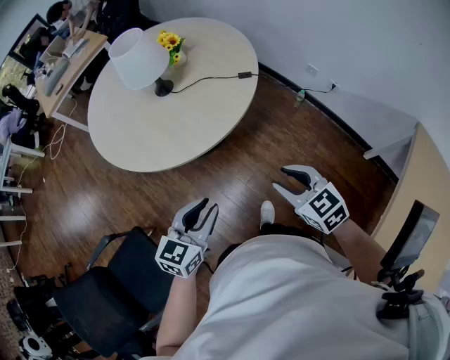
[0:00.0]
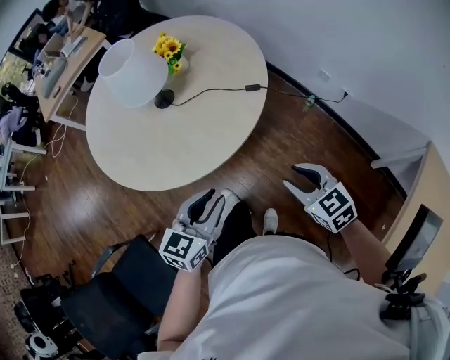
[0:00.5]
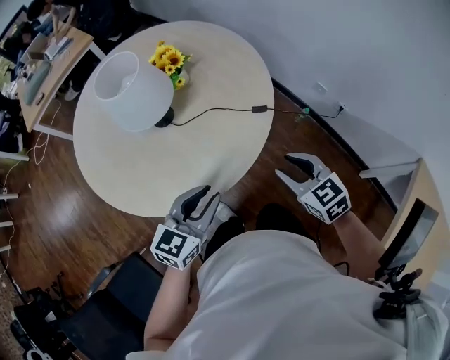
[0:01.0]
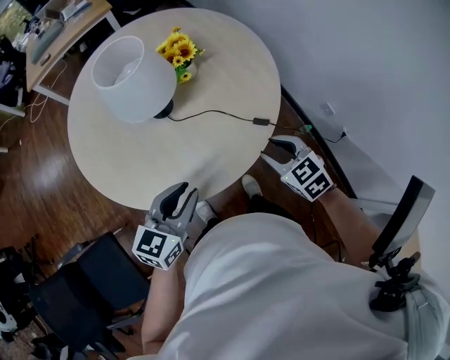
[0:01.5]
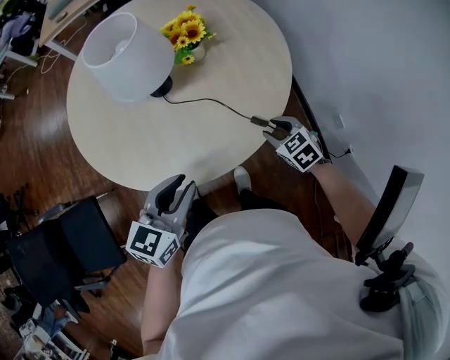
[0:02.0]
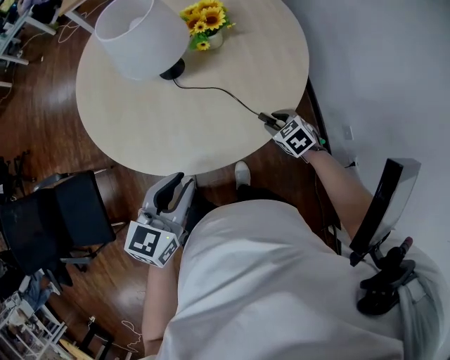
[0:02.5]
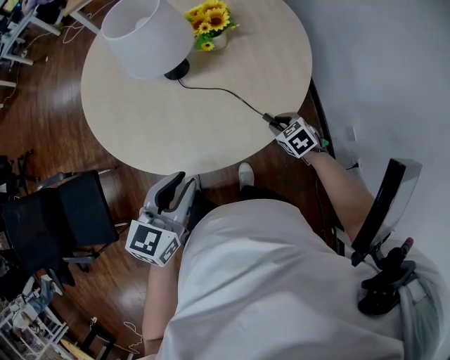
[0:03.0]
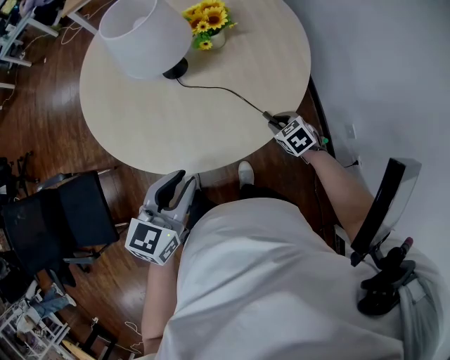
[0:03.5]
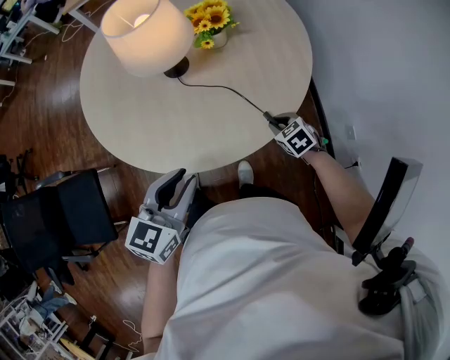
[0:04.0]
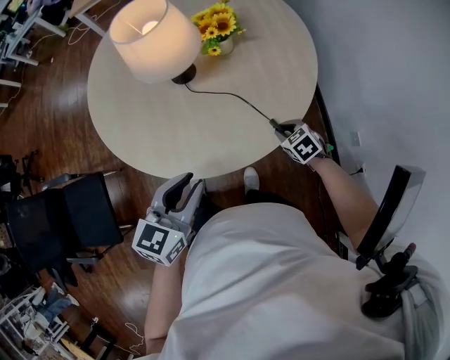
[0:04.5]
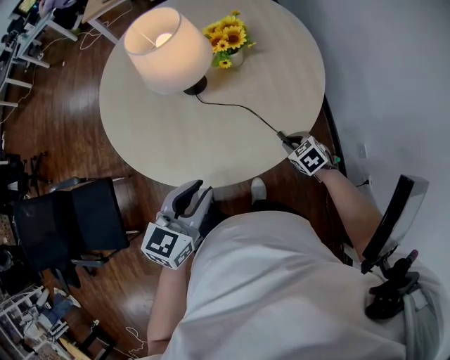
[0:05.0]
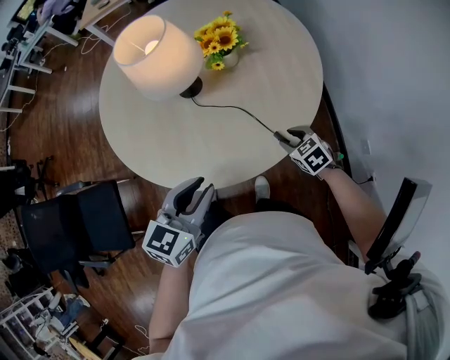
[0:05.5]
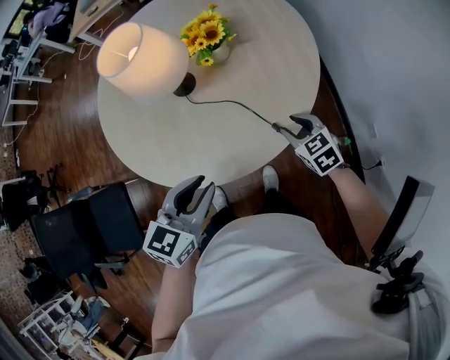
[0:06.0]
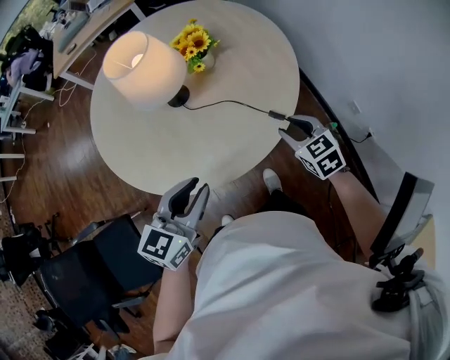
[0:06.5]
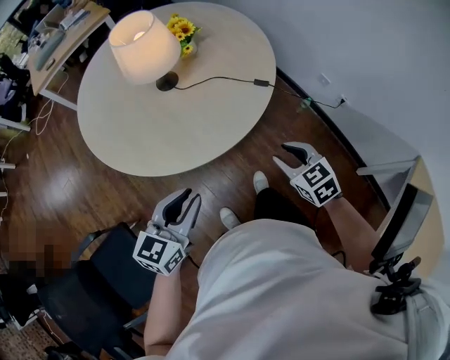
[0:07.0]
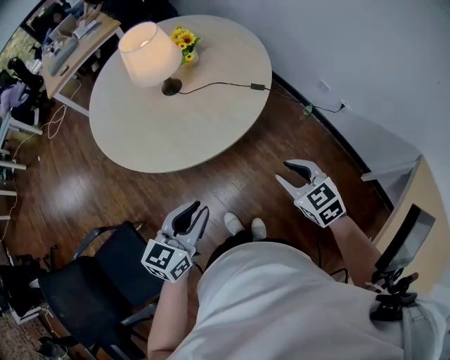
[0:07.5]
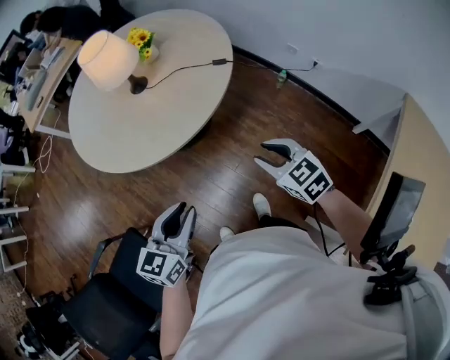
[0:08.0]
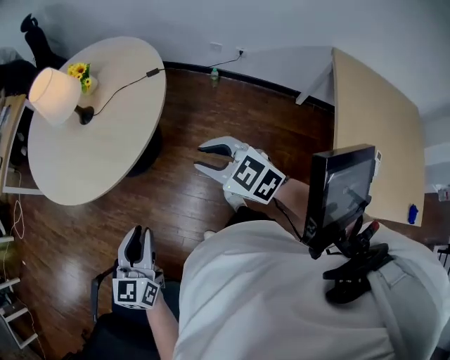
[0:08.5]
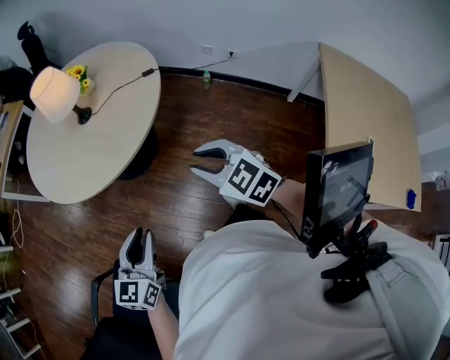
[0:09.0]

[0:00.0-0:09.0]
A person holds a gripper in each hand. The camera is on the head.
0:00.0 to 0:02.0: The left gripper shifts by about 30 cm, and swivels about 30 degrees. Meanwhile the right gripper changes place by roughly 50 cm, and swivels approximately 30 degrees.
0:02.0 to 0:04.5: The right gripper moves downward, some 10 cm, and closes its fingers.
0:04.5 to 0:07.0: The left gripper is displaced forward by roughly 20 cm, while the right gripper is displaced upward, forward and to the right by about 20 cm, and rotates roughly 30 degrees.
0:07.0 to 0:09.0: The left gripper shifts approximately 15 cm backward, while the right gripper is displaced backward, upward and to the left by some 25 cm.

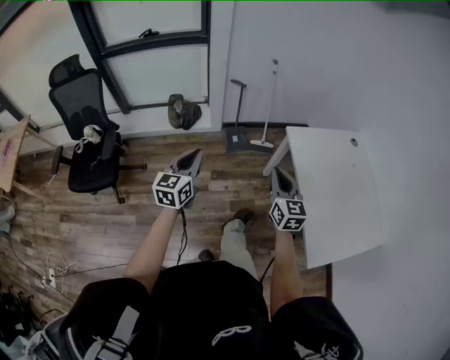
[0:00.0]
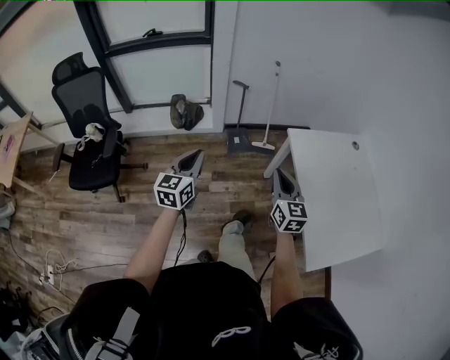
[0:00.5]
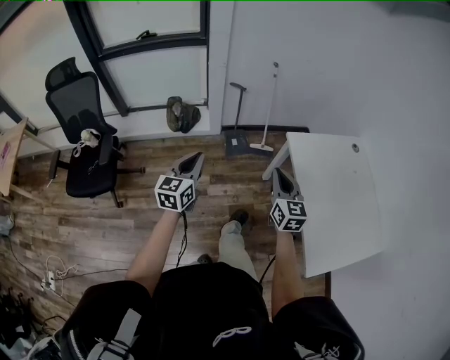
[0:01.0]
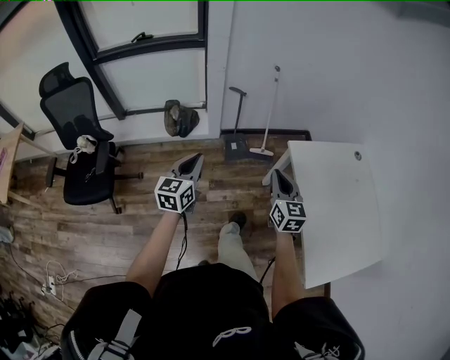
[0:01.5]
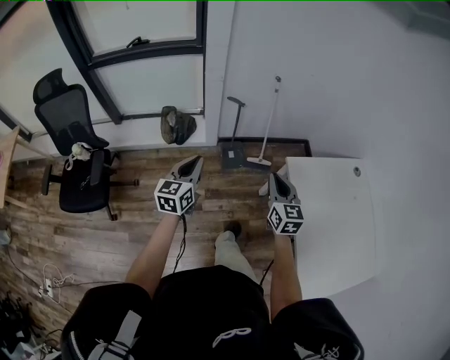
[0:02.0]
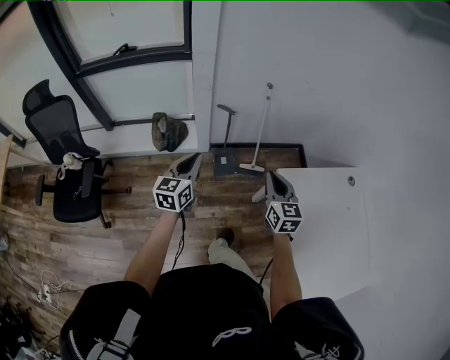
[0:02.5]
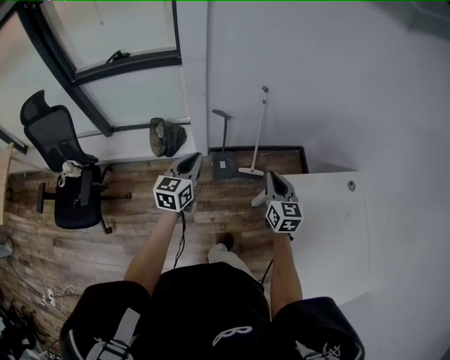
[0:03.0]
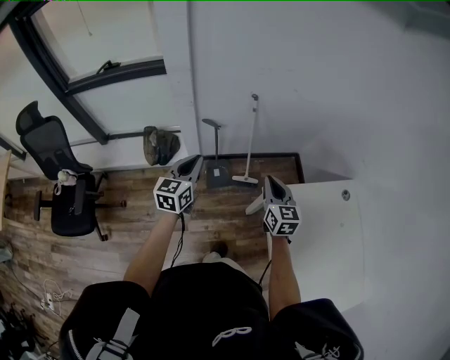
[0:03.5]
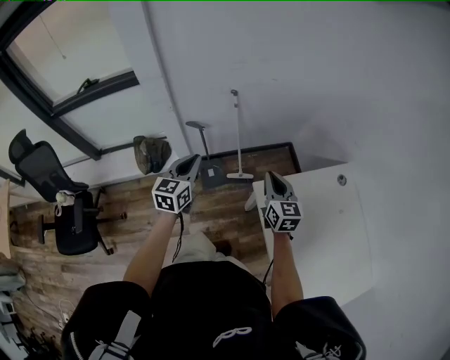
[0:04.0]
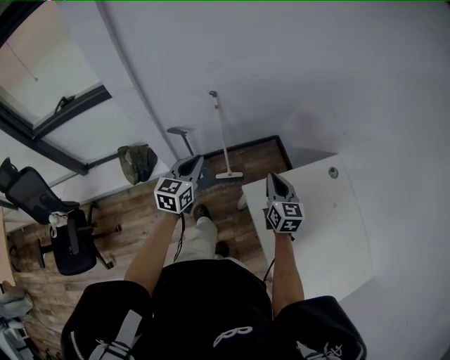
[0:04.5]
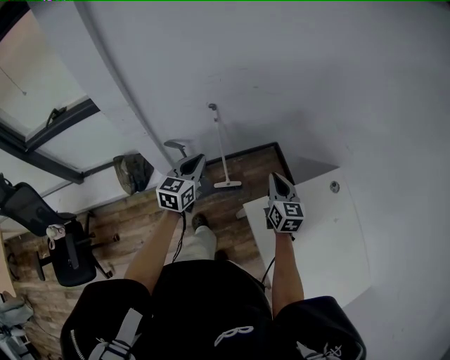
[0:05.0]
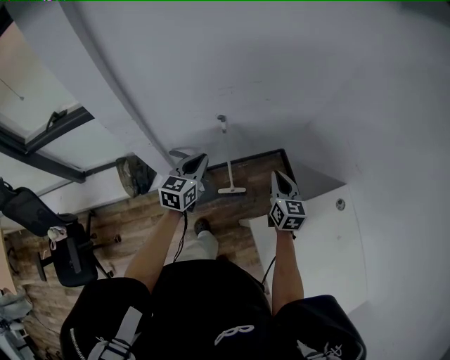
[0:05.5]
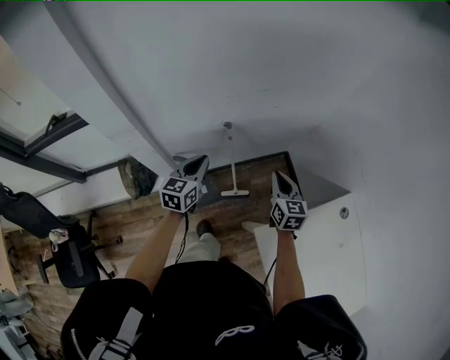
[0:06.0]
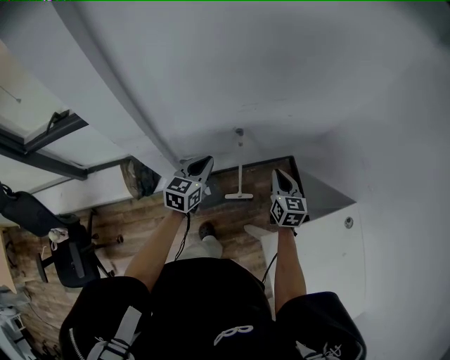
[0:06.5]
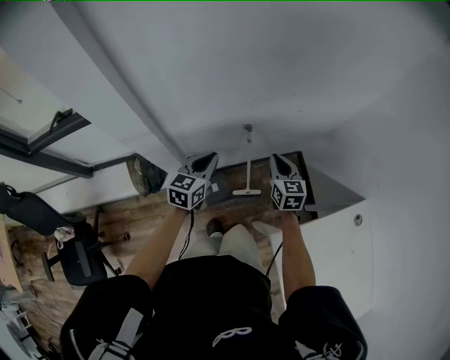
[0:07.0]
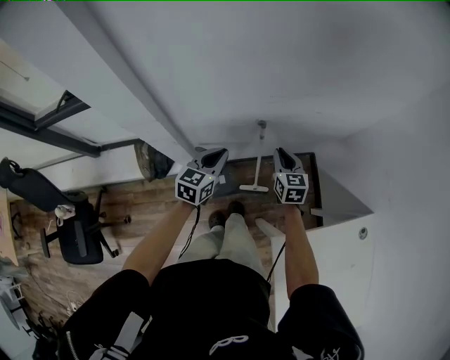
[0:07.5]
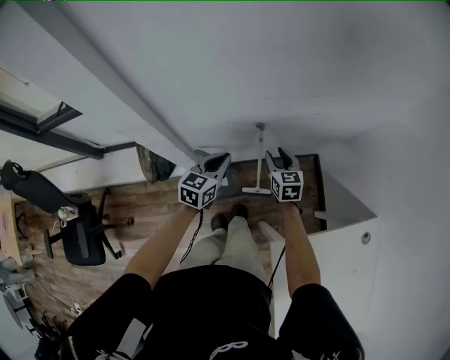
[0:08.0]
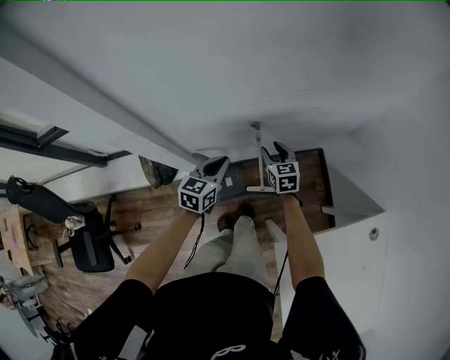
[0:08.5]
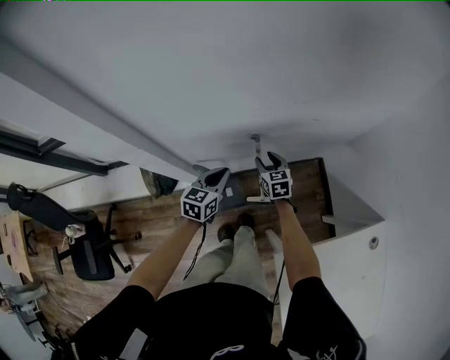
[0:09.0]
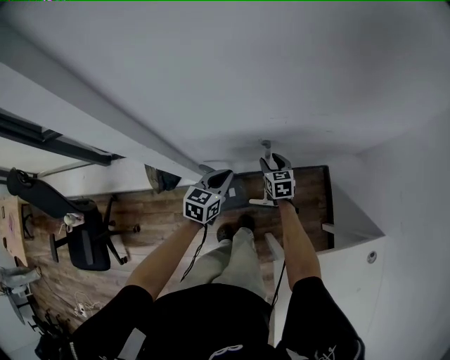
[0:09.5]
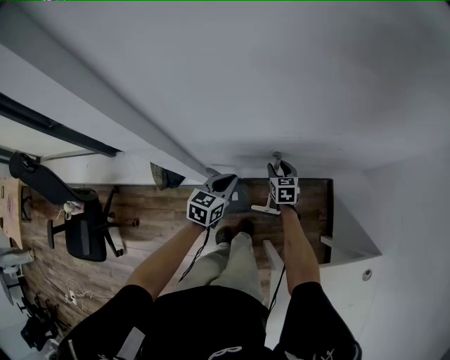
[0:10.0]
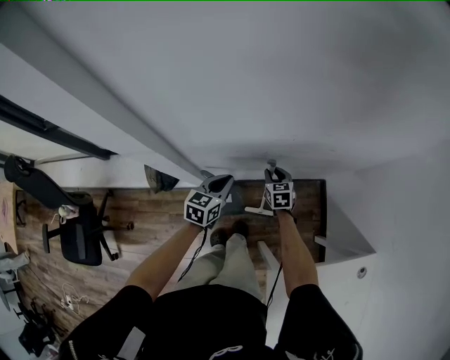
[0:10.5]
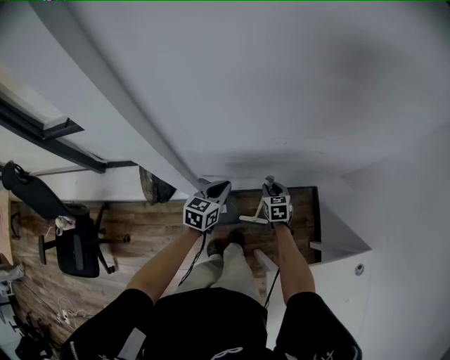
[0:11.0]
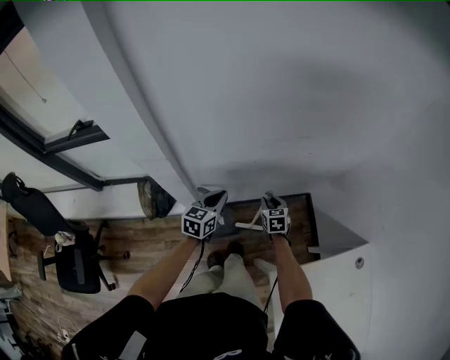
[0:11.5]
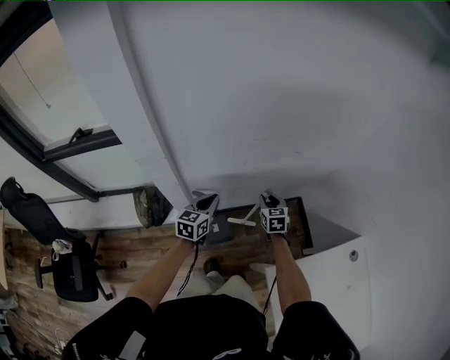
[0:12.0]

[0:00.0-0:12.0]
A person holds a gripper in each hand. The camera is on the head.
0:00.0 to 0:02.0: The two grippers go some 20 cm forward.
0:02.0 to 0:04.0: Both grippers travel together forward and to the right, some 25 cm.
0:04.0 to 0:06.0: The grippers both shift forward by some 25 cm.
0:06.0 to 0:08.0: The left gripper heads downward and forward, covering about 10 cm. The right gripper is displaced forward, downward and to the left by some 20 cm, and opens up.
0:08.0 to 0:10.0: The left gripper moves downward, about 5 cm. The right gripper heads downward and forward, covering roughly 15 cm.
0:10.0 to 0:12.0: The left gripper heads upward and backward, covering approximately 10 cm; the right gripper is displaced backward, upward and to the right by some 20 cm.

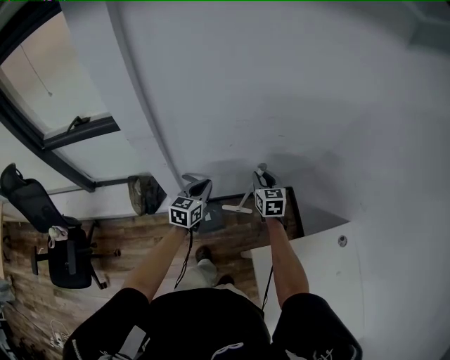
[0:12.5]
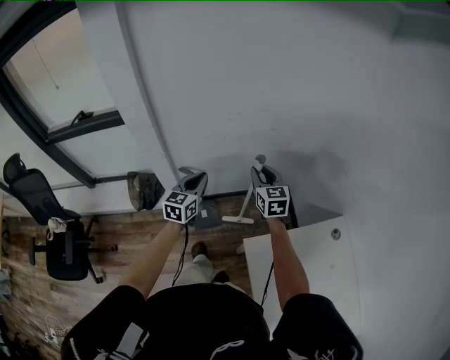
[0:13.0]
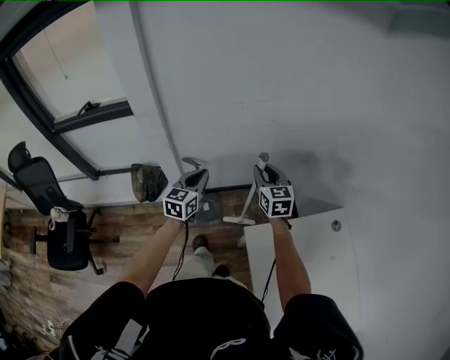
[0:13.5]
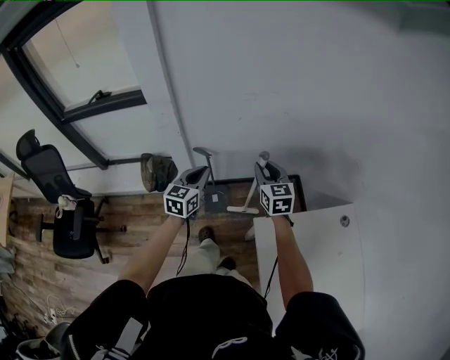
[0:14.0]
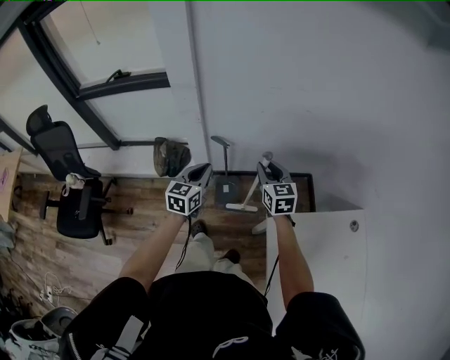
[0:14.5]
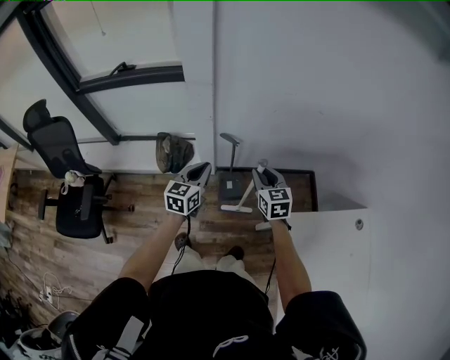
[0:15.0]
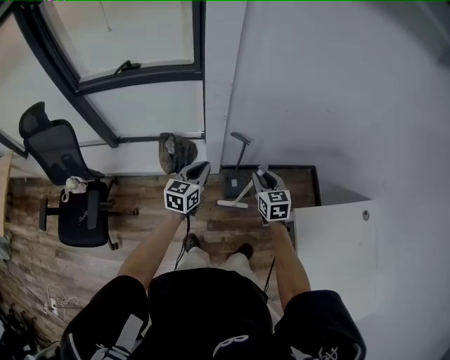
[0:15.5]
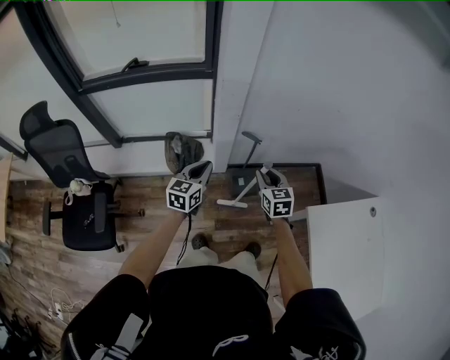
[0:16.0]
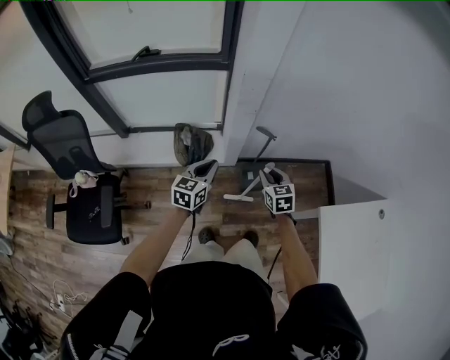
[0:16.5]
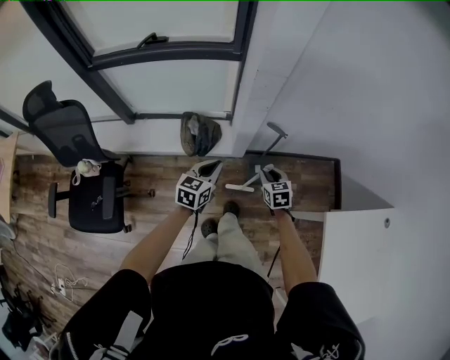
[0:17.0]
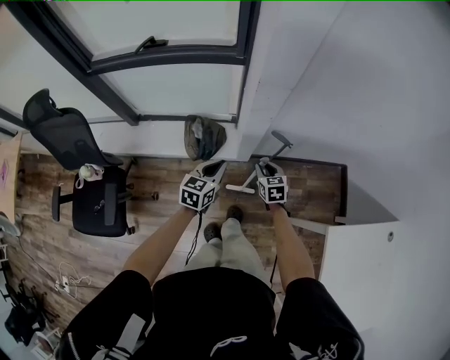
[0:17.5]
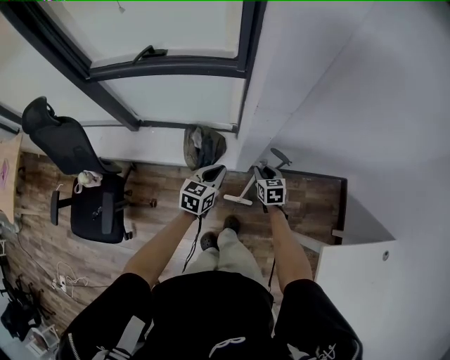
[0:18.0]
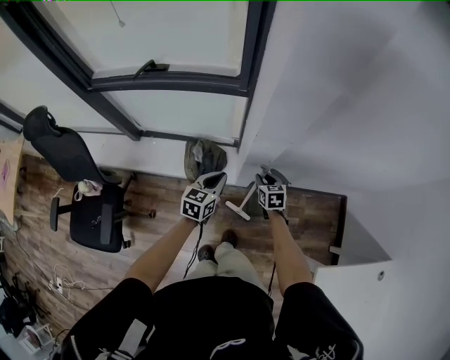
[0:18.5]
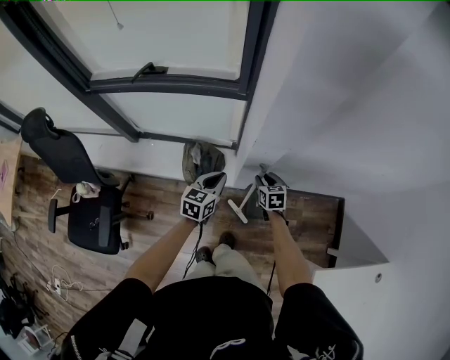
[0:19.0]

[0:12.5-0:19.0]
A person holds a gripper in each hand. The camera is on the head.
0:12.5 to 0:14.5: The two grippers go about 15 cm backward.
0:14.5 to 0:17.0: The right gripper heads to the left and downward, covering about 35 cm, and changes its angle by some 20 degrees. Meanwhile the left gripper travels to the left by some 30 cm.
0:17.0 to 0:19.0: The grippers both shift forward by some 20 cm.
